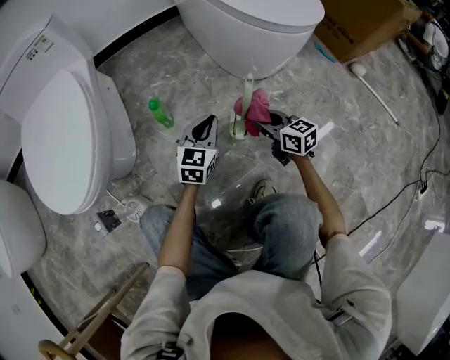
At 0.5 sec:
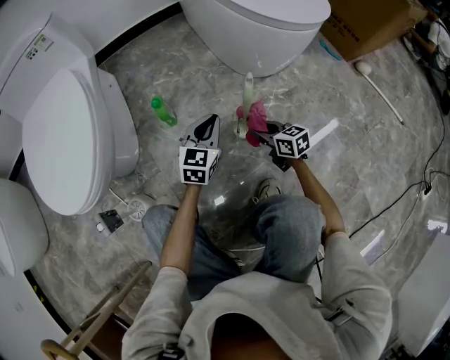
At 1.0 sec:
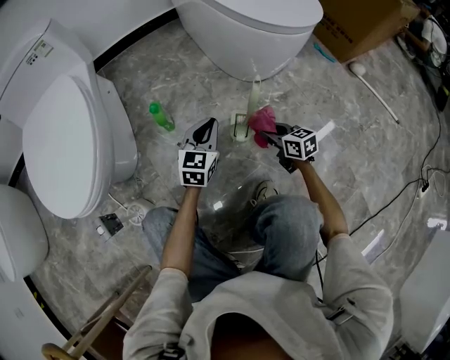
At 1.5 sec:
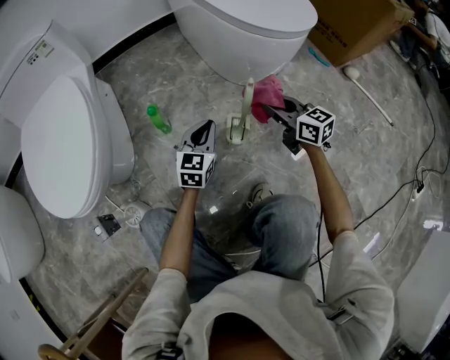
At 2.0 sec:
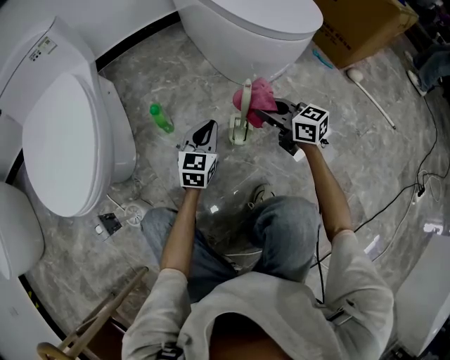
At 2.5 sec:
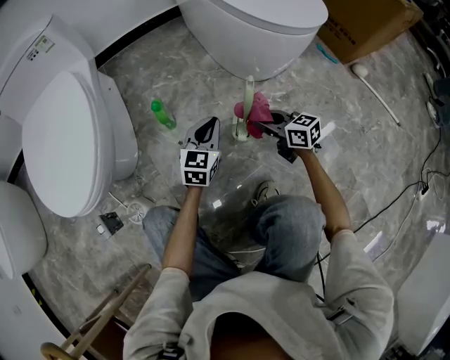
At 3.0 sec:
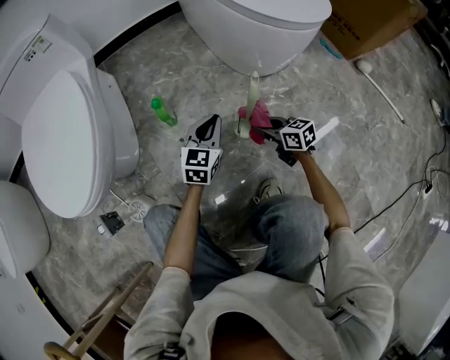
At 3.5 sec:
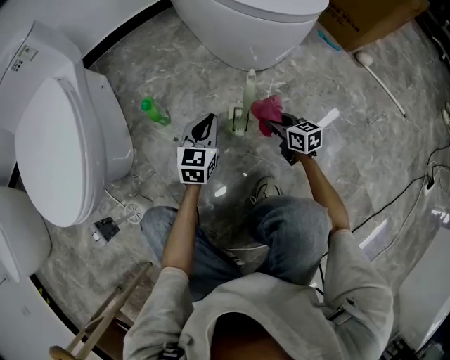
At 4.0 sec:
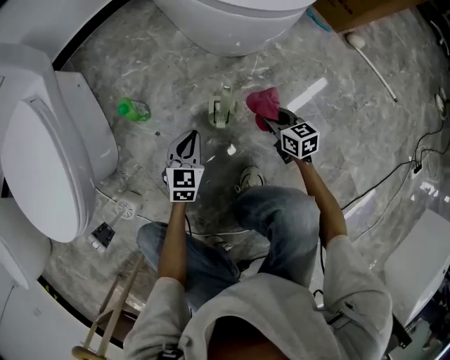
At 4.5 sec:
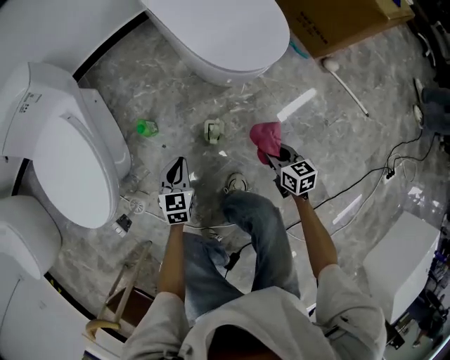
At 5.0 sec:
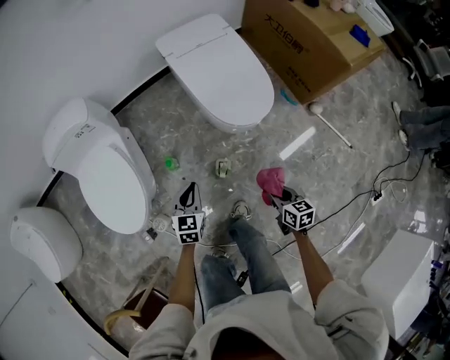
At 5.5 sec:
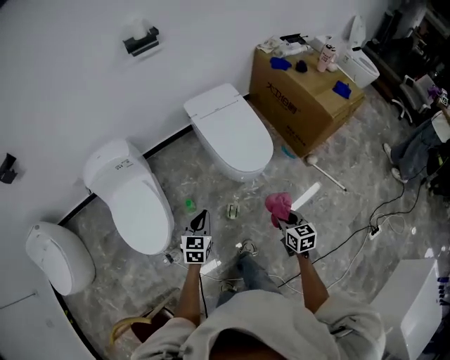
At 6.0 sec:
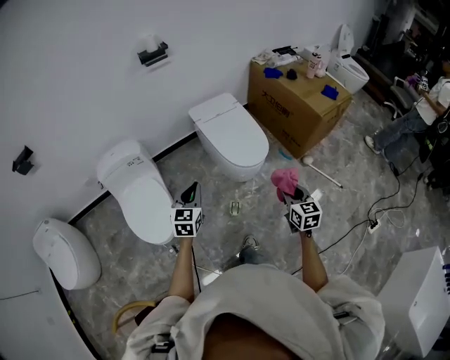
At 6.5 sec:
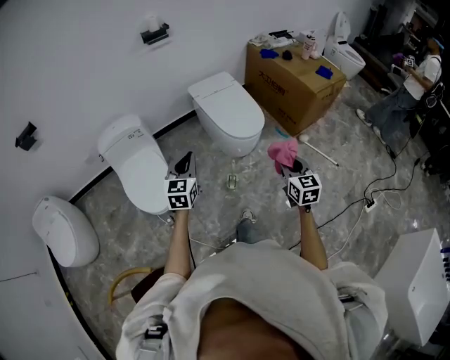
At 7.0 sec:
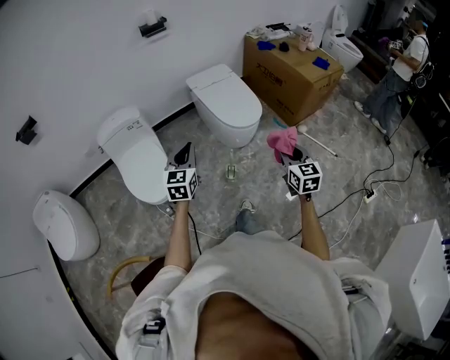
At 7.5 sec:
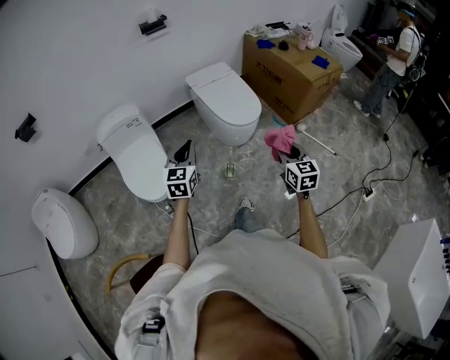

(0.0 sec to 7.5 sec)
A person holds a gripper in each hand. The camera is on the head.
0.0 sec - 2.0 sec: The right gripper is displaced upward by about 5 cm.
2.0 sec - 4.0 sec: The left gripper moves downward, roughly 5 cm; the right gripper goes roughly 20 cm downward and to the right, and swivels roughly 30 degrees.
4.0 sec - 5.5 sec: The grippers both shift upward by some 60 cm.
5.5 sec - 7.5 sec: Both grippers move upward and backward, roughly 20 cm. The right gripper rotates some 20 degrees.

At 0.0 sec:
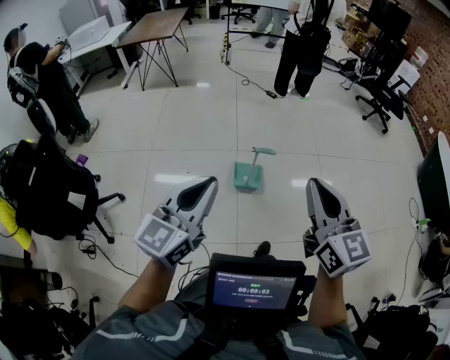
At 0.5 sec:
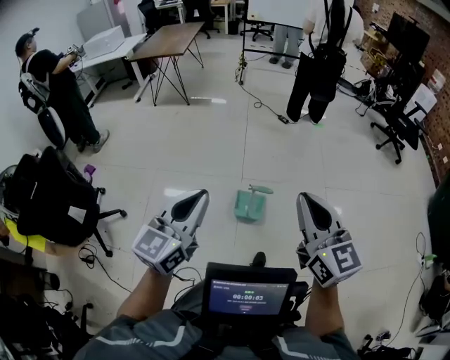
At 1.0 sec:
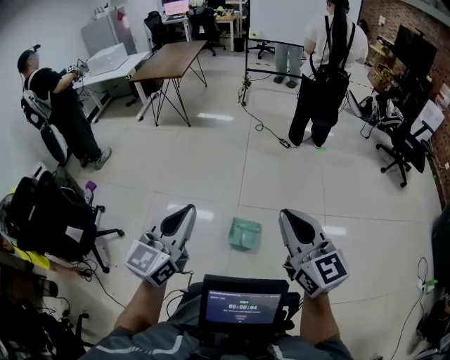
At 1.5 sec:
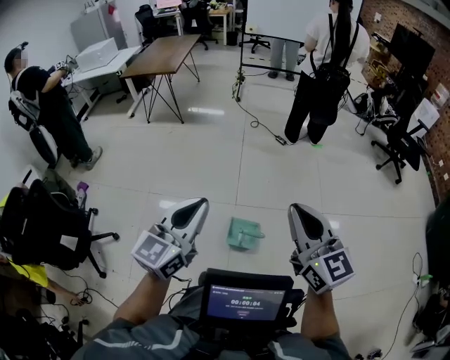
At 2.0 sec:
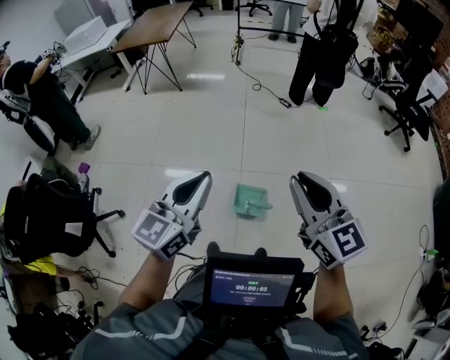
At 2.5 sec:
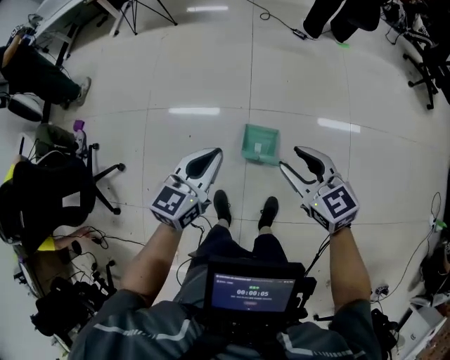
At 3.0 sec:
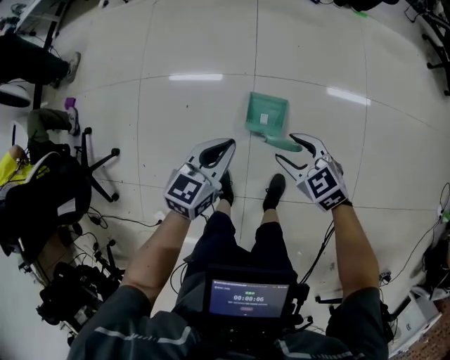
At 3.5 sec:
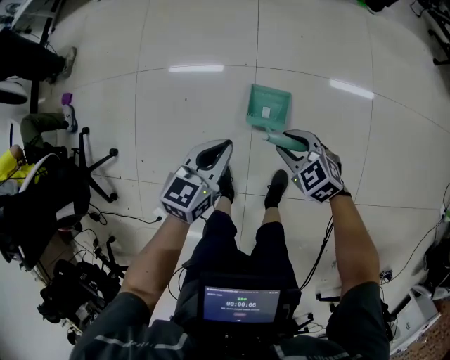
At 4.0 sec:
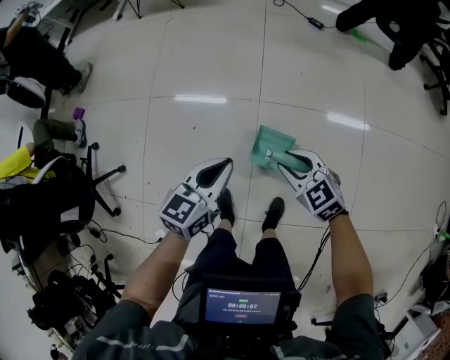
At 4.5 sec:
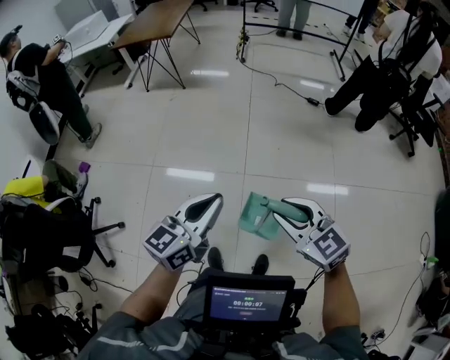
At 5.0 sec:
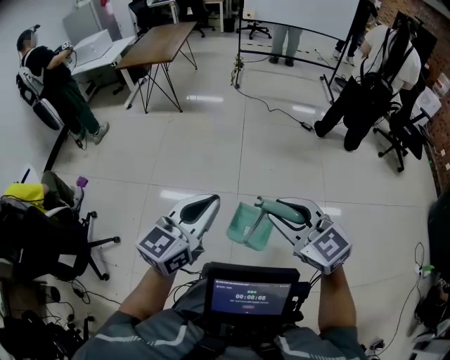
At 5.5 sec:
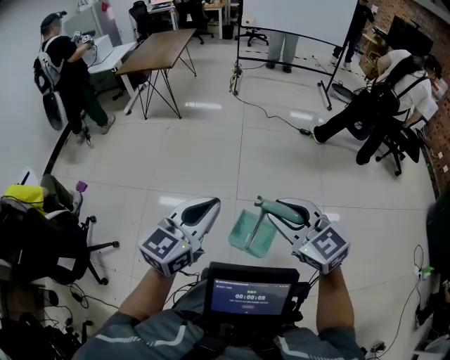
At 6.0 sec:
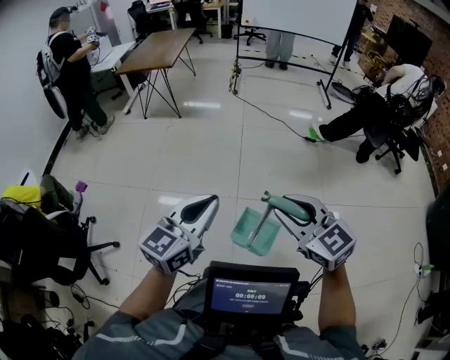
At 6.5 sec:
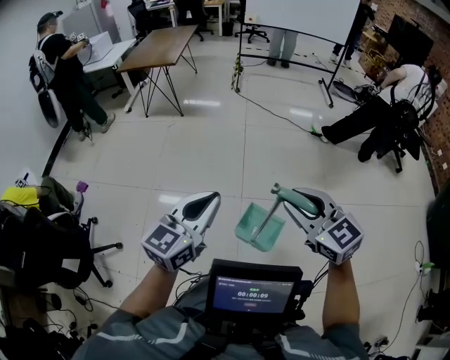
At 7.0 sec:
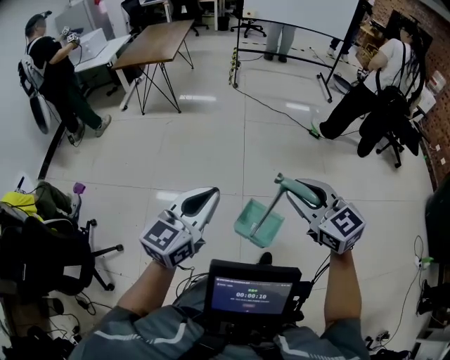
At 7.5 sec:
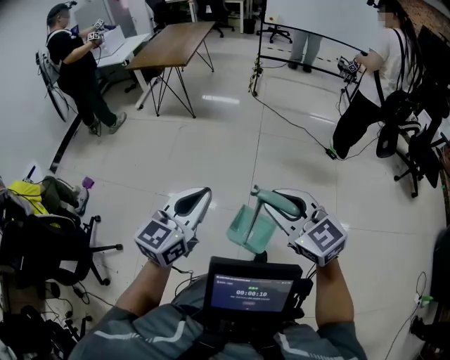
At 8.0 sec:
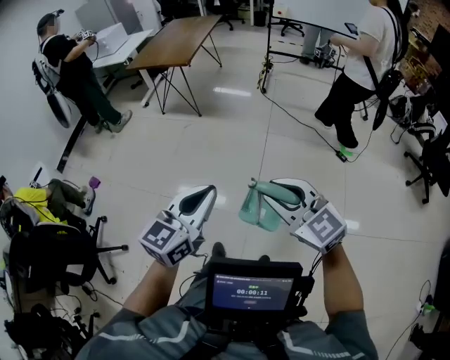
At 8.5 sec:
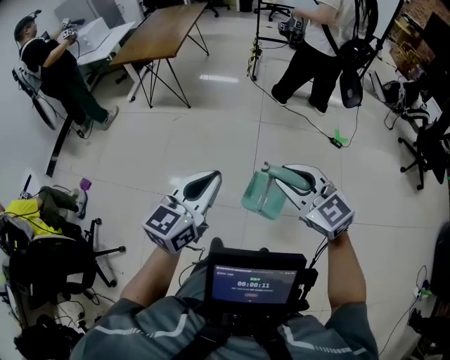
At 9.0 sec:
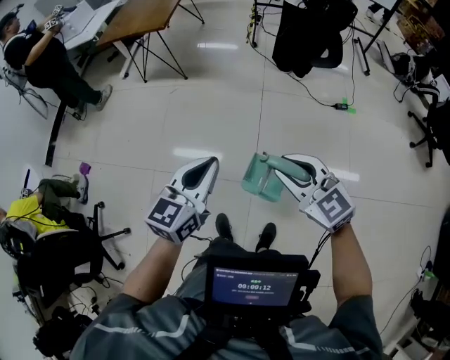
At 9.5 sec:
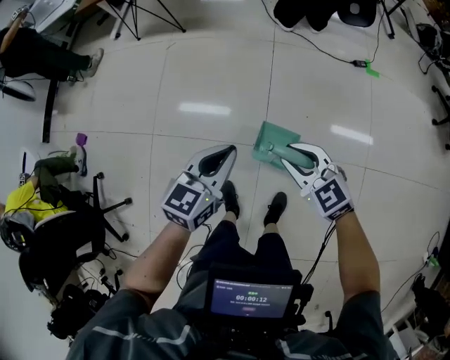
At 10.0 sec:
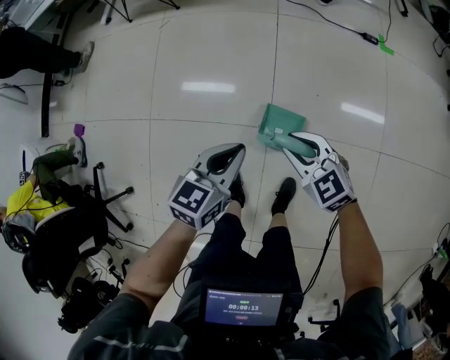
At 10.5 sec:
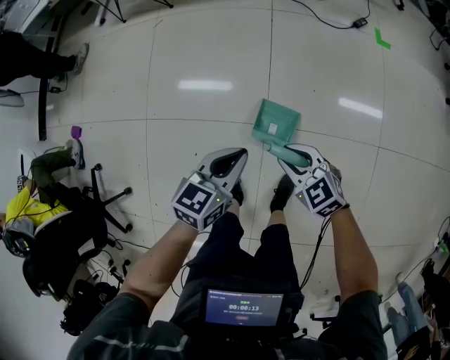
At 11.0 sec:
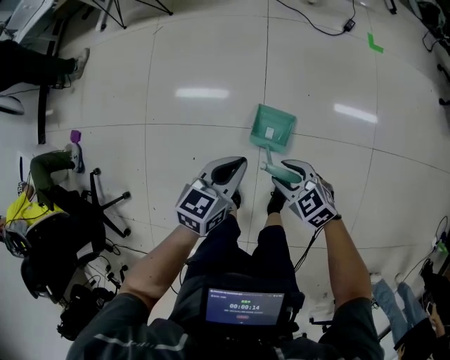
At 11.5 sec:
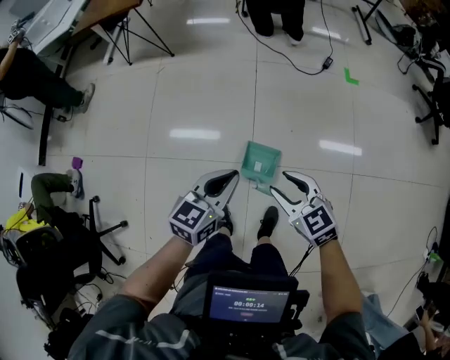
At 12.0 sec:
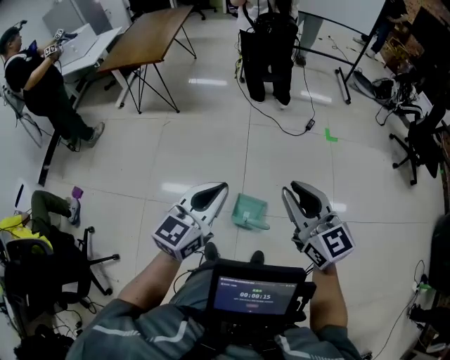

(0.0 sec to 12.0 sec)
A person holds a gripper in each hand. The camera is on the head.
0.0 sec - 2.0 sec: Both grippers are carried forward, about 50 cm.
2.0 sec - 4.0 sec: Both grippers move downward, roughly 50 cm. The right gripper angles its fingers downward, by approximately 30 degrees, and opens and closes again. The left gripper changes its angle by about 20 degrees.
4.0 sec - 6.0 sec: The grippers both shift upward by about 50 cm. The left gripper changes its angle by about 20 degrees. Meanwhile the right gripper changes its angle by roughly 20 degrees.
6.0 sec - 8.0 sec: The pair of grippers is taken forward, roughly 50 cm.
8.0 sec - 10.0 sec: Both grippers move downward and forward, about 60 cm. The right gripper rotates approximately 20 degrees. Meanwhile the left gripper rotates some 30 degrees.
10.0 sec - 12.0 sec: The two grippers go some 50 cm upward. The left gripper rotates about 30 degrees, while the right gripper changes its angle by roughly 40 degrees.

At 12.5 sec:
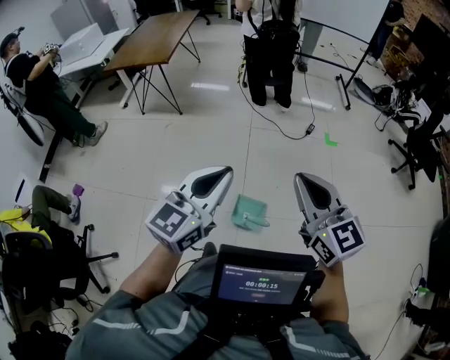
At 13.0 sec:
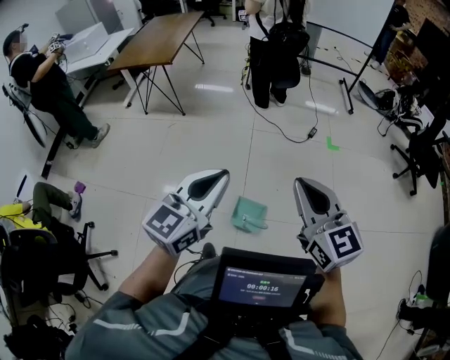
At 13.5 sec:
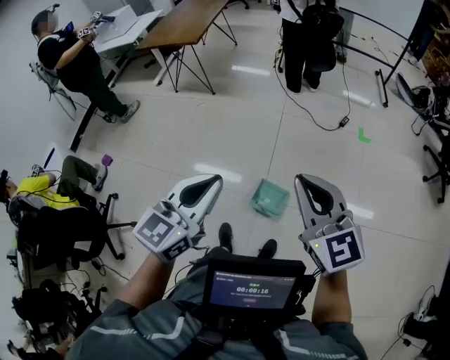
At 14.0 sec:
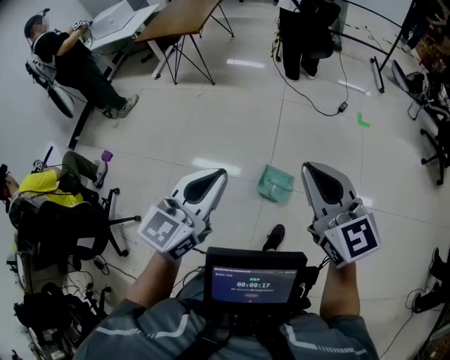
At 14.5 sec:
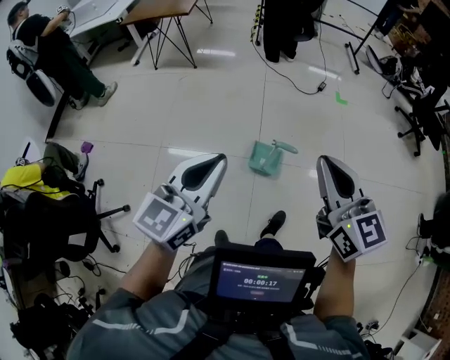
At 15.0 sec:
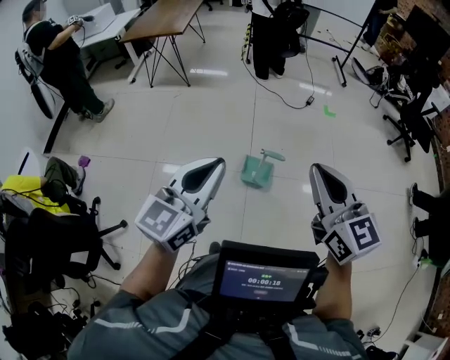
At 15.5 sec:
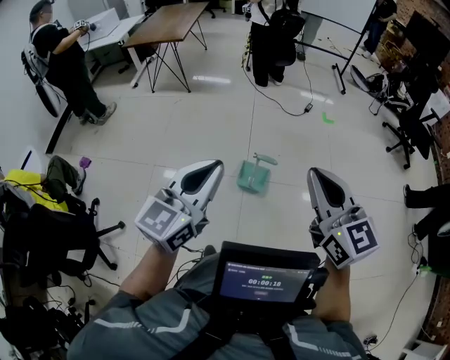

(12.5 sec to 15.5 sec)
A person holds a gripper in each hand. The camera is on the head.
12.5 sec - 14.0 sec: Both grippers travel together backward, roughly 15 cm.
14.0 sec - 15.5 sec: The two grippers go about 30 cm backward and to the left.

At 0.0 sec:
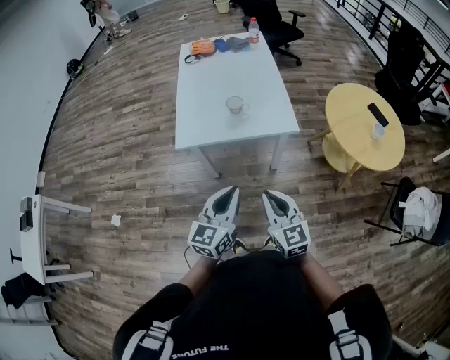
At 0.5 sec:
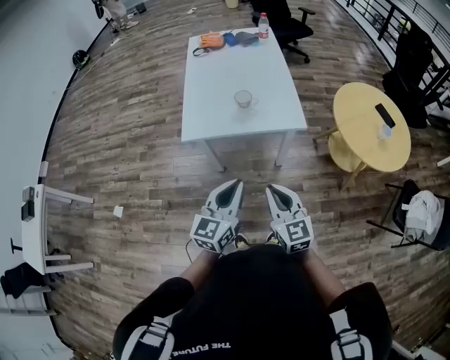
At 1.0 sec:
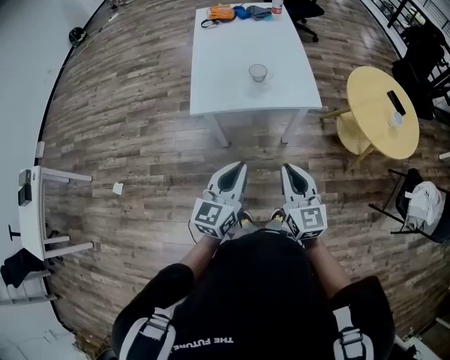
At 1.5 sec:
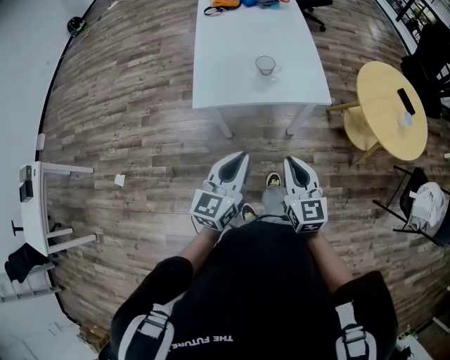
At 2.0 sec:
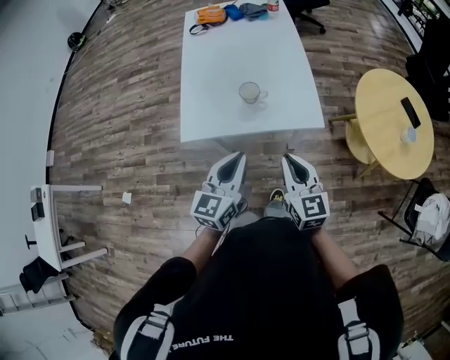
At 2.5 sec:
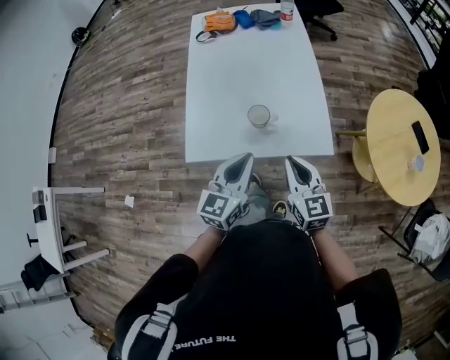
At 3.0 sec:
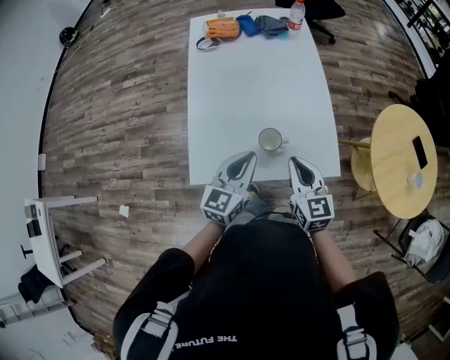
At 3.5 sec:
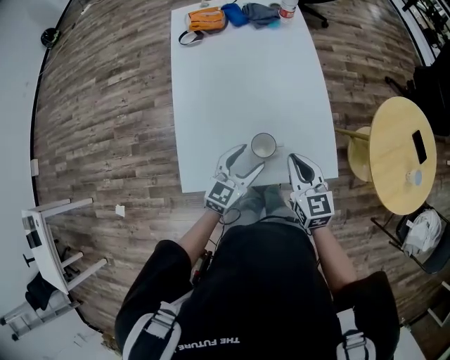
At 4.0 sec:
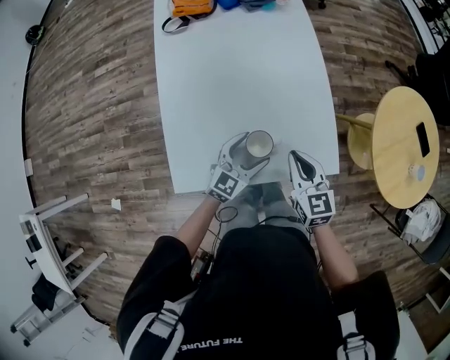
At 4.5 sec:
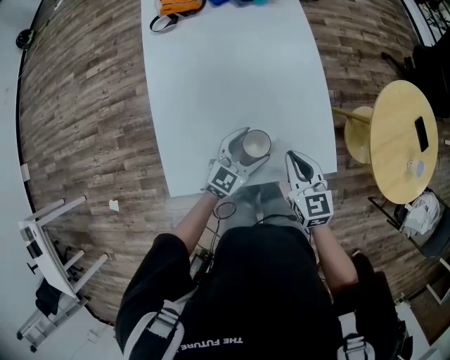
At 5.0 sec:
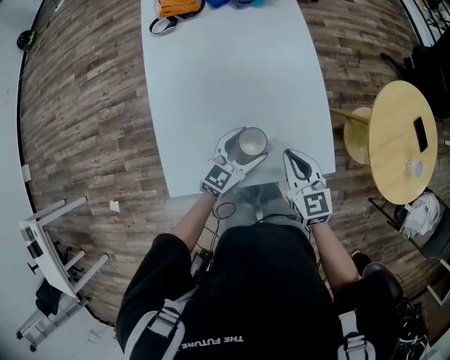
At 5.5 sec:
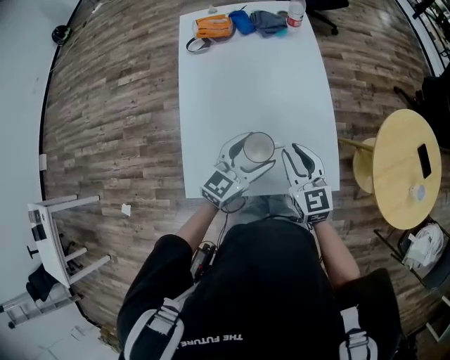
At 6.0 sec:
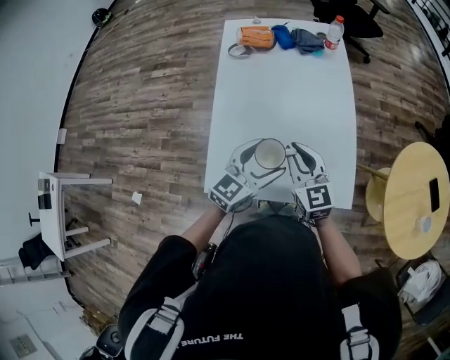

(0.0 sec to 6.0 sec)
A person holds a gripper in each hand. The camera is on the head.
0.0 sec - 2.0 sec: Both grippers move forward, approximately 20 cm.
2.0 sec - 4.0 sec: The right gripper heads forward, covering approximately 25 cm, while the left gripper moves forward and downward, about 35 cm, swivels roughly 30 degrees, and opens up.
4.0 sec - 6.0 sec: The left gripper is displaced upward by approximately 15 cm. The right gripper shifts about 15 cm upward and to the left, and changes its angle by roughly 20 degrees.
